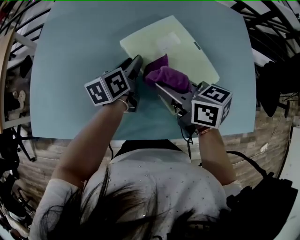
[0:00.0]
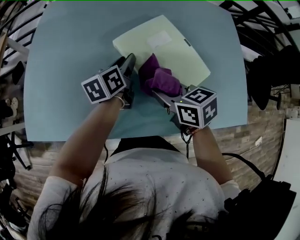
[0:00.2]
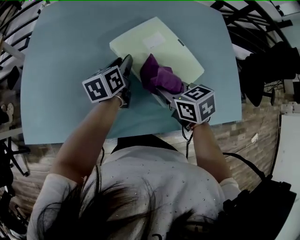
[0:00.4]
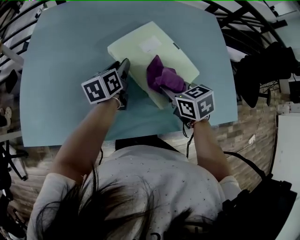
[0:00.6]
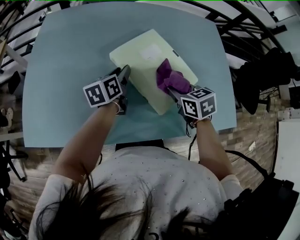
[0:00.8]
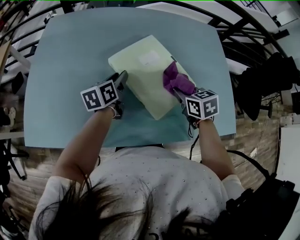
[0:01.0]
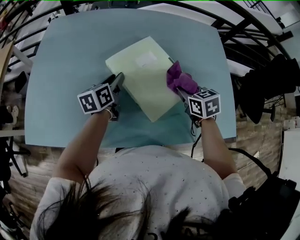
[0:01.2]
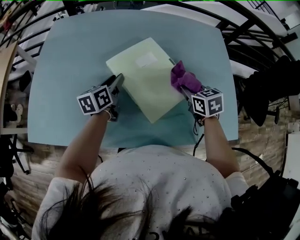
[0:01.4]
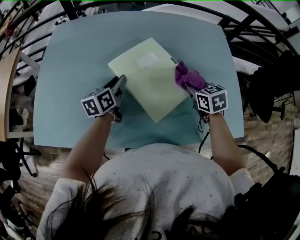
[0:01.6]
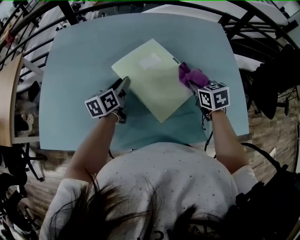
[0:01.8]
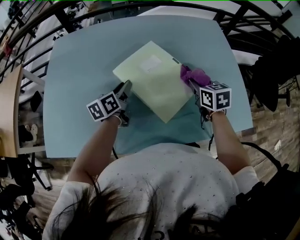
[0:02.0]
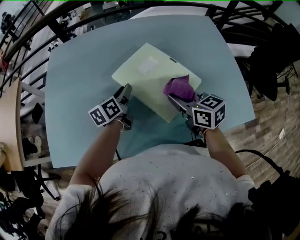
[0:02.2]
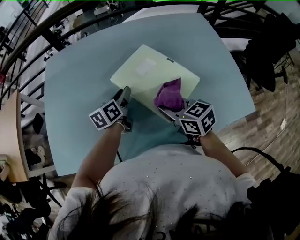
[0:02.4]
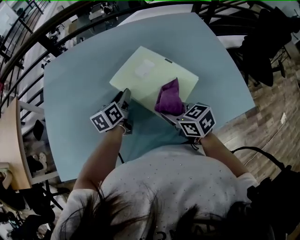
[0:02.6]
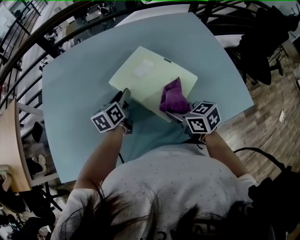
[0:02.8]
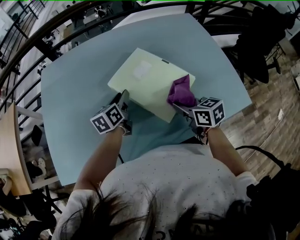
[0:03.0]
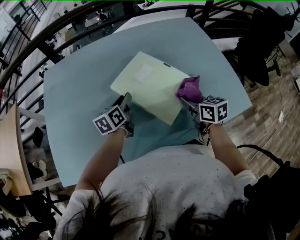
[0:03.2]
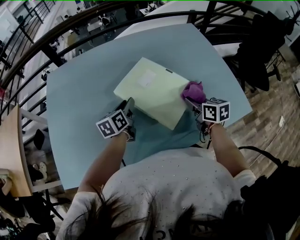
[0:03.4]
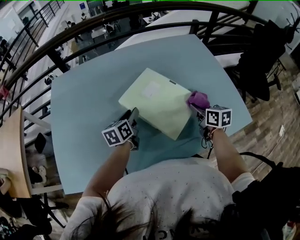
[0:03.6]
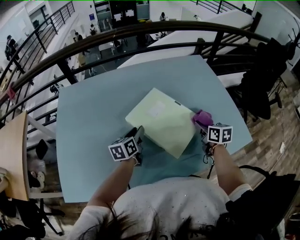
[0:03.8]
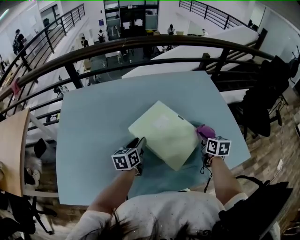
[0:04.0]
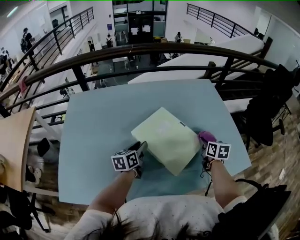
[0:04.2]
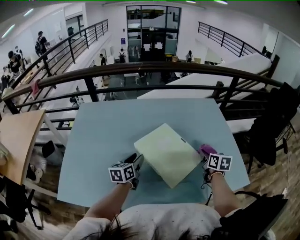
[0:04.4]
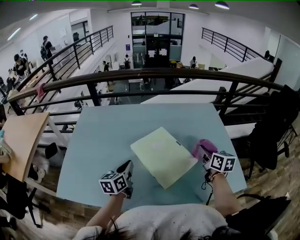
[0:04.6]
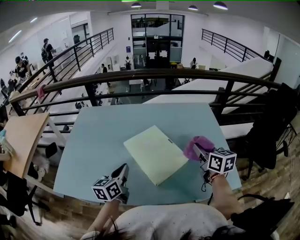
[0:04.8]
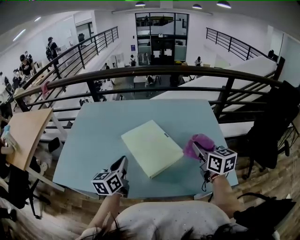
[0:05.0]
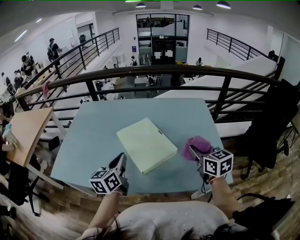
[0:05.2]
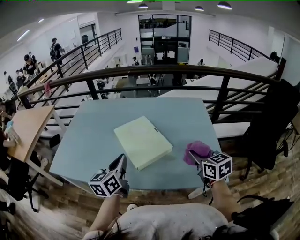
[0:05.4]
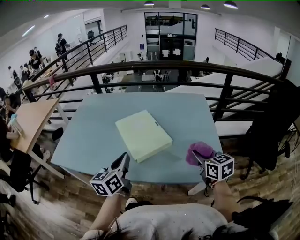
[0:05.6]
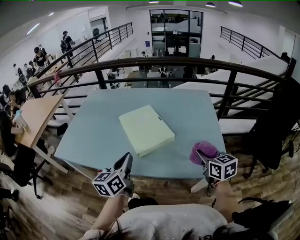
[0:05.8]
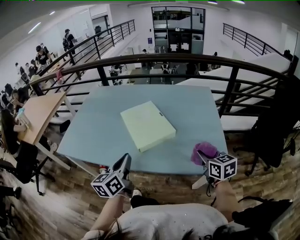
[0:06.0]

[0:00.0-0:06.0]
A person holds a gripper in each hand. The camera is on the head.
0:00.0 to 0:01.6: The right gripper is displaced to the right by roughly 20 cm, and turns by some 40 degrees.
0:01.6 to 0:03.0: The right gripper goes approximately 15 cm backward and to the left, and swivels approximately 20 degrees.
0:03.0 to 0:04.4: The right gripper is displaced to the right and forward by approximately 15 cm, and turns by roughly 20 degrees.
0:04.4 to 0:06.0: The two grippers go some 35 cm backward, upward and to the right. The left gripper rotates some 30 degrees, and closes. The right gripper rotates roughly 30 degrees.

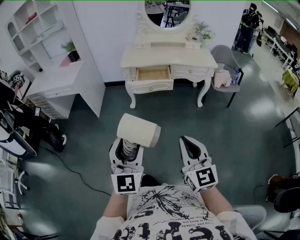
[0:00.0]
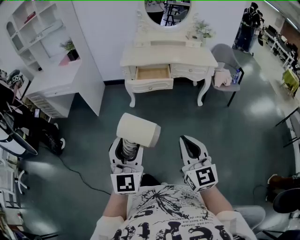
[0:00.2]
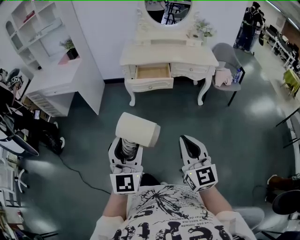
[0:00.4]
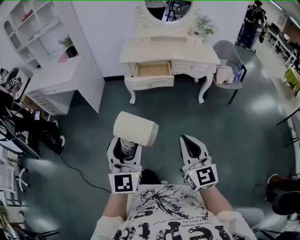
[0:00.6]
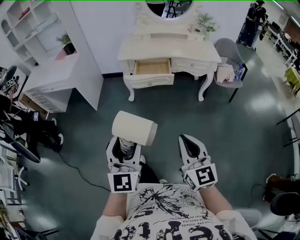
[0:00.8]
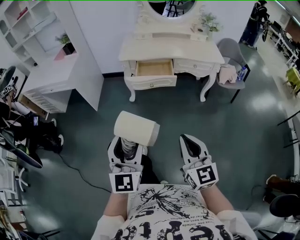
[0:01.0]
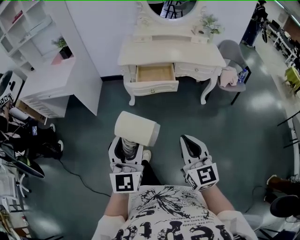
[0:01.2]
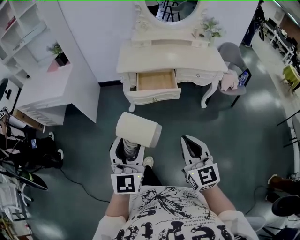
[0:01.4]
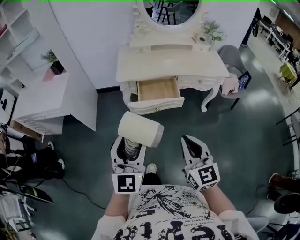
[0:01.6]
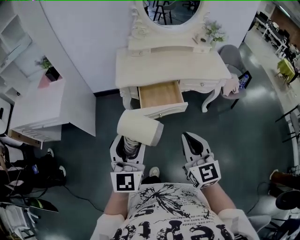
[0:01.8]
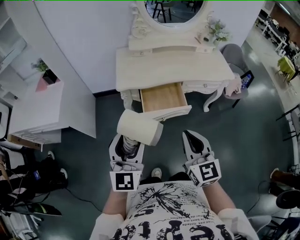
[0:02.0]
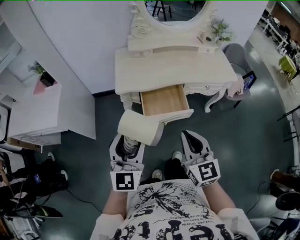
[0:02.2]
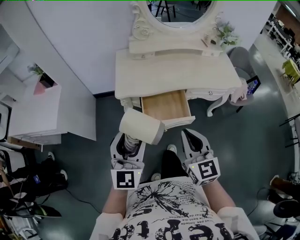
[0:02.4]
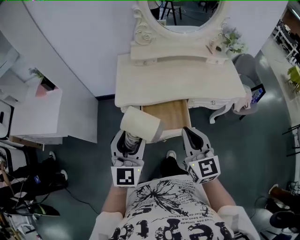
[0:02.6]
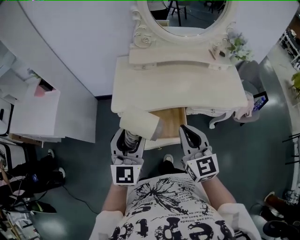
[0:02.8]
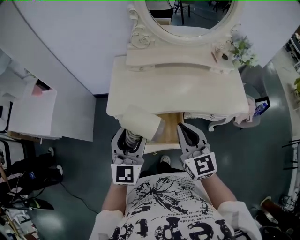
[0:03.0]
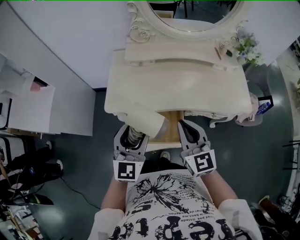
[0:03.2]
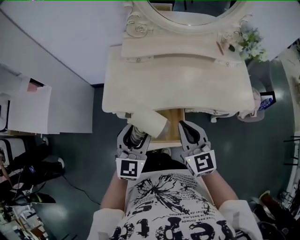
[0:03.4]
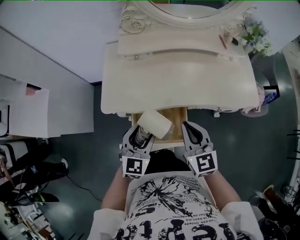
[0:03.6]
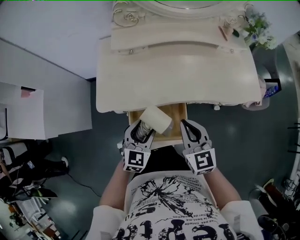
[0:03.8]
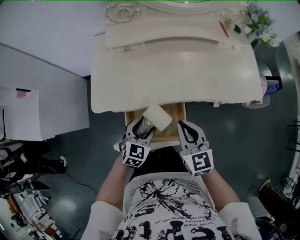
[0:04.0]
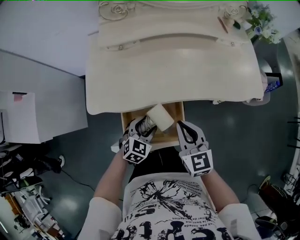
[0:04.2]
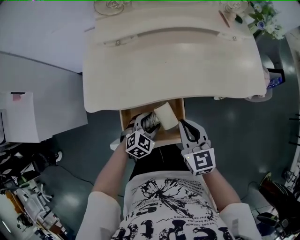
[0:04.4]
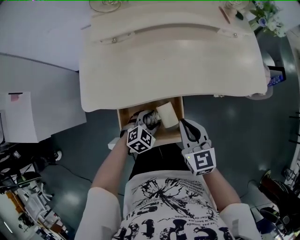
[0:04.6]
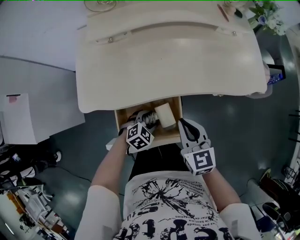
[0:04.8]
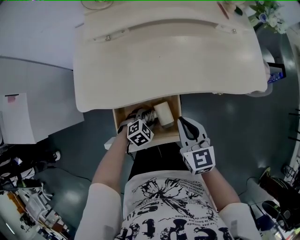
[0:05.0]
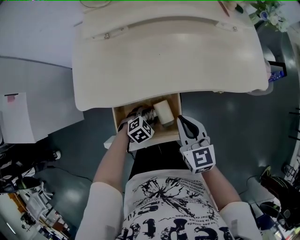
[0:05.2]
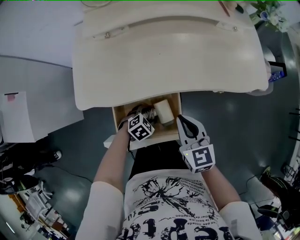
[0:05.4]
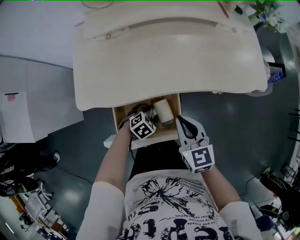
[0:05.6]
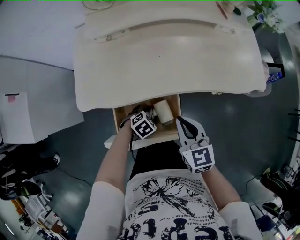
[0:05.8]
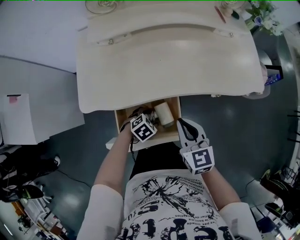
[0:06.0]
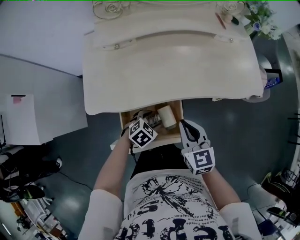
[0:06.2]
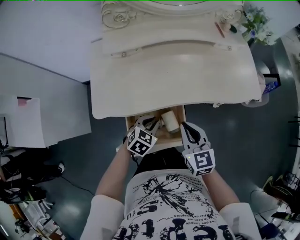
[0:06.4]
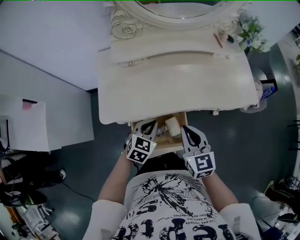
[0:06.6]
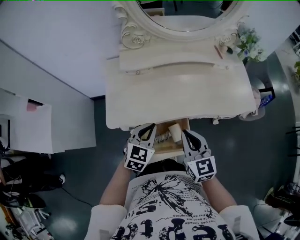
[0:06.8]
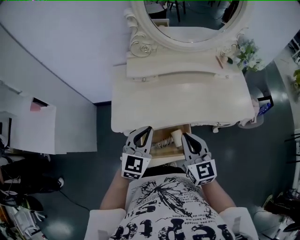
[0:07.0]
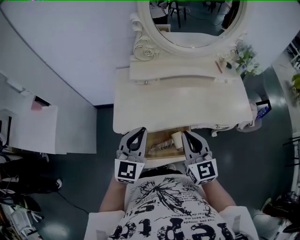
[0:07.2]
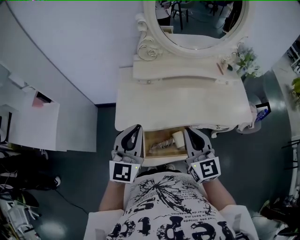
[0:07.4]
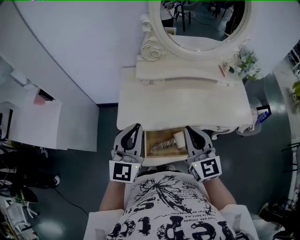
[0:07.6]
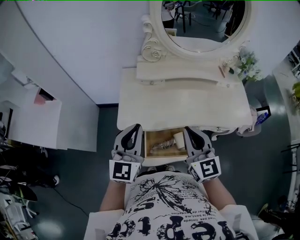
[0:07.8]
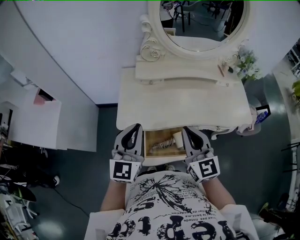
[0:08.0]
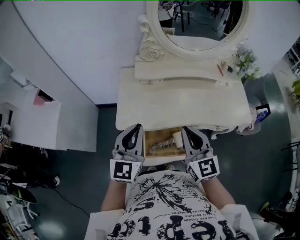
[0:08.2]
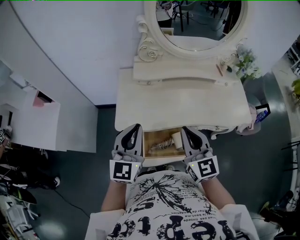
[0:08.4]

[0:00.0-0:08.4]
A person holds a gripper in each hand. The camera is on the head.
0:00.0 to 0:01.4: Both grippers move forward, approximately 20 cm.
0:01.4 to 0:02.8: The two grippers travel together, forward, about 40 cm.
0:02.8 to 0:04.2: The left gripper moves downward, about 30 cm, and tips its fingers downward by approximately 40 degrees; the right gripper shifts roughly 20 cm downward and forward.
0:04.2 to 0:05.6: The left gripper travels downward by roughly 5 cm, and turns by approximately 30 degrees.
0:05.6 to 0:07.0: The left gripper is displaced upward by approximately 30 cm, points its fingers approximately 50 degrees further upward, and closes its fingers; the right gripper moves upward, approximately 10 cm.
0:07.0 to 0:08.4: The right gripper goes roughly 5 cm upward; the left gripper moves upward and to the left, about 10 cm, and turns by about 20 degrees.

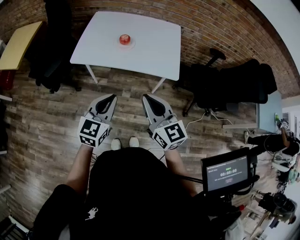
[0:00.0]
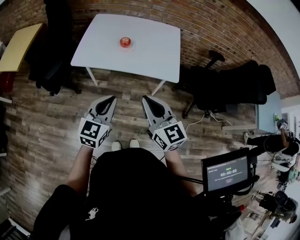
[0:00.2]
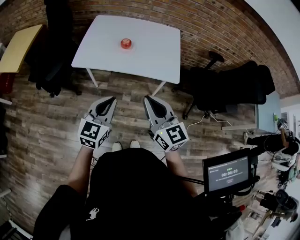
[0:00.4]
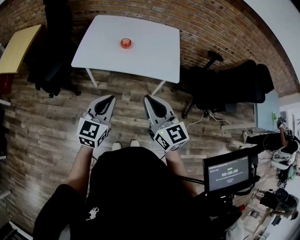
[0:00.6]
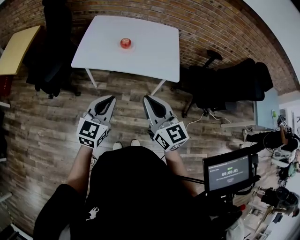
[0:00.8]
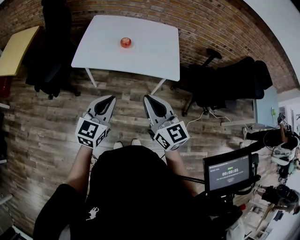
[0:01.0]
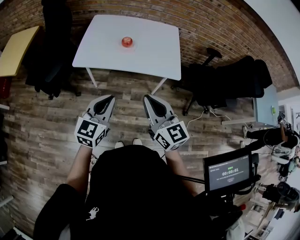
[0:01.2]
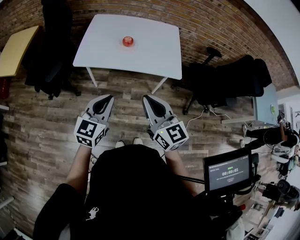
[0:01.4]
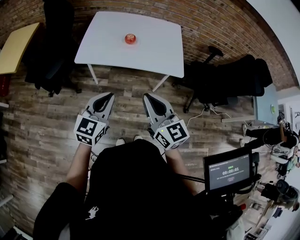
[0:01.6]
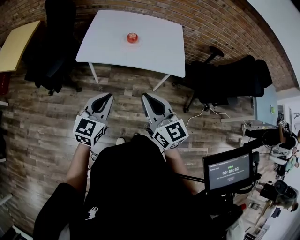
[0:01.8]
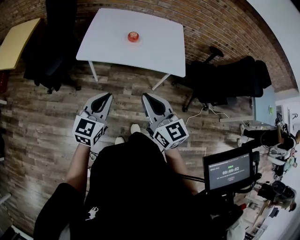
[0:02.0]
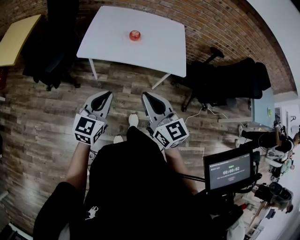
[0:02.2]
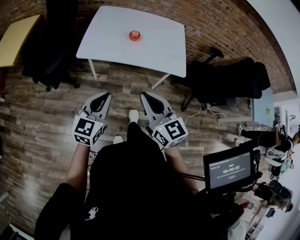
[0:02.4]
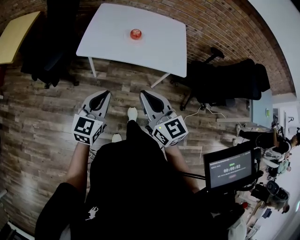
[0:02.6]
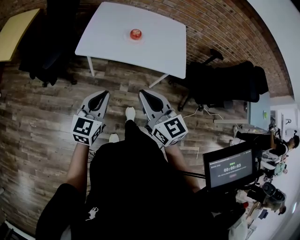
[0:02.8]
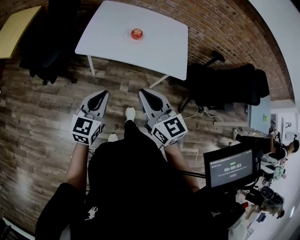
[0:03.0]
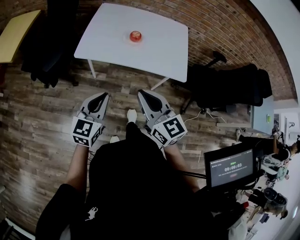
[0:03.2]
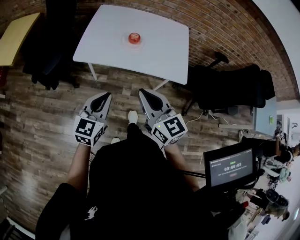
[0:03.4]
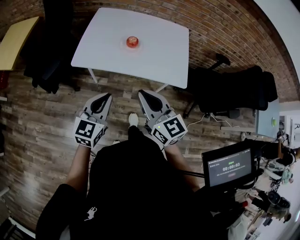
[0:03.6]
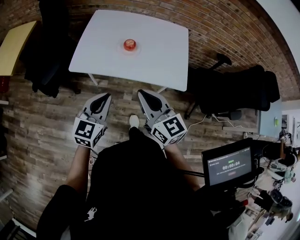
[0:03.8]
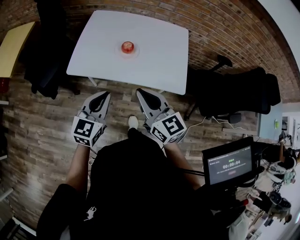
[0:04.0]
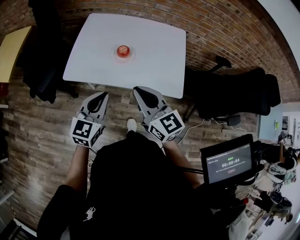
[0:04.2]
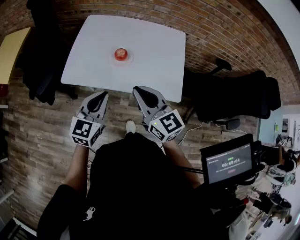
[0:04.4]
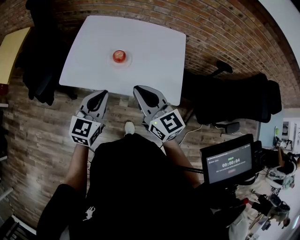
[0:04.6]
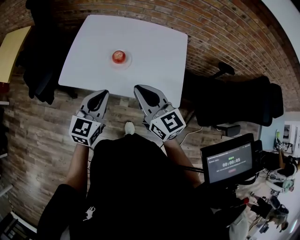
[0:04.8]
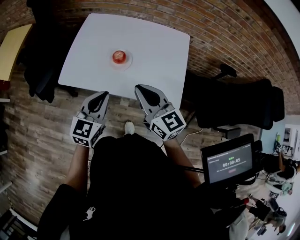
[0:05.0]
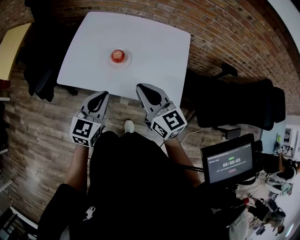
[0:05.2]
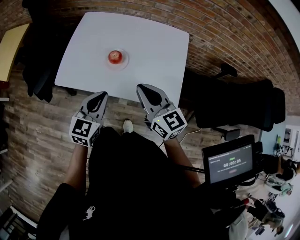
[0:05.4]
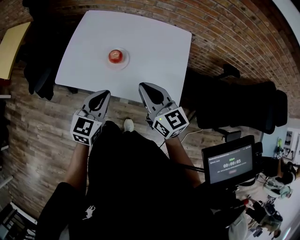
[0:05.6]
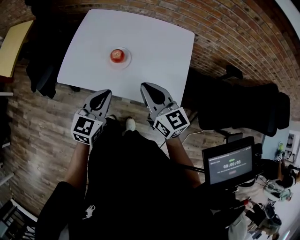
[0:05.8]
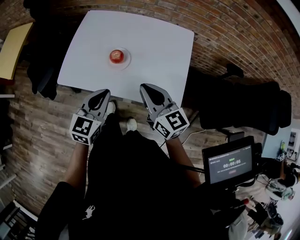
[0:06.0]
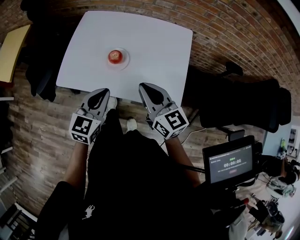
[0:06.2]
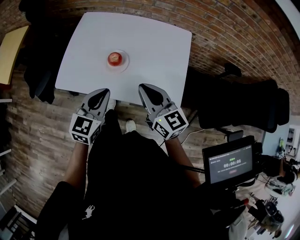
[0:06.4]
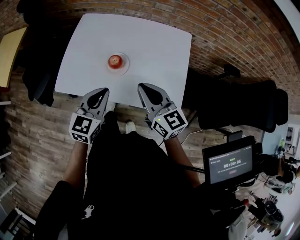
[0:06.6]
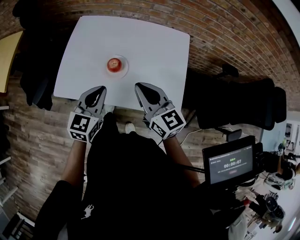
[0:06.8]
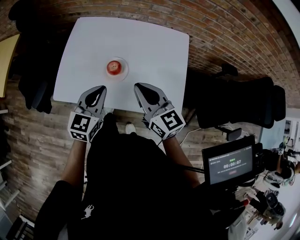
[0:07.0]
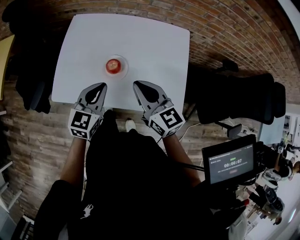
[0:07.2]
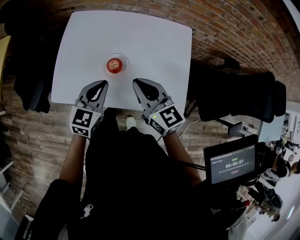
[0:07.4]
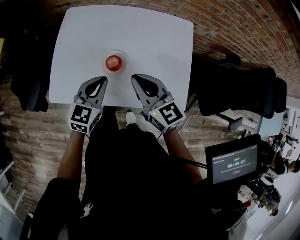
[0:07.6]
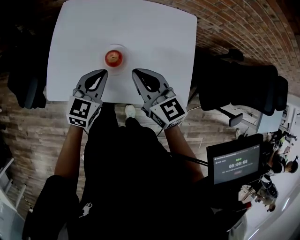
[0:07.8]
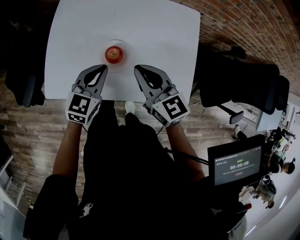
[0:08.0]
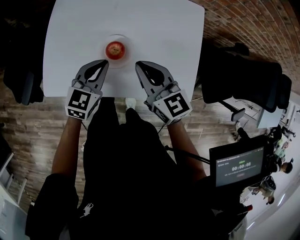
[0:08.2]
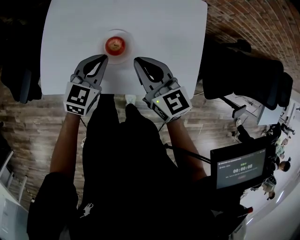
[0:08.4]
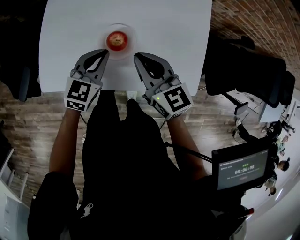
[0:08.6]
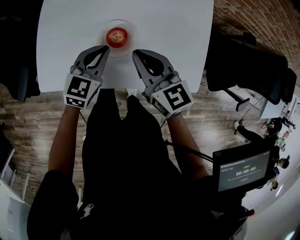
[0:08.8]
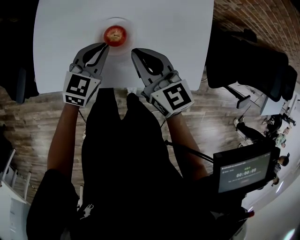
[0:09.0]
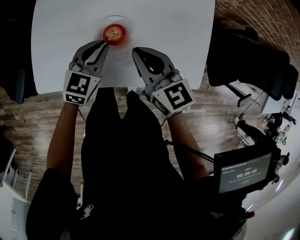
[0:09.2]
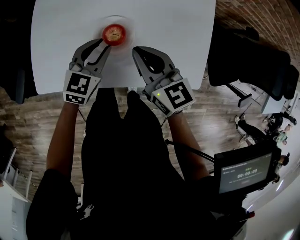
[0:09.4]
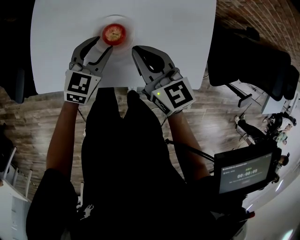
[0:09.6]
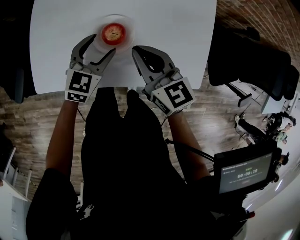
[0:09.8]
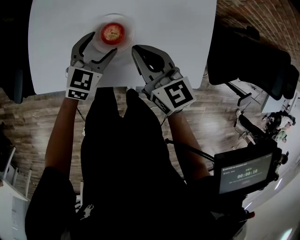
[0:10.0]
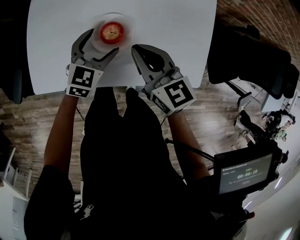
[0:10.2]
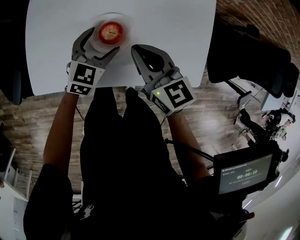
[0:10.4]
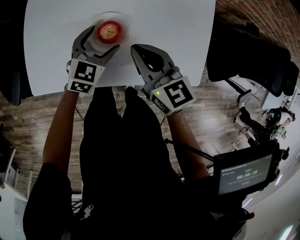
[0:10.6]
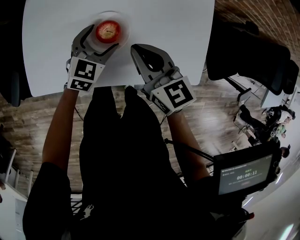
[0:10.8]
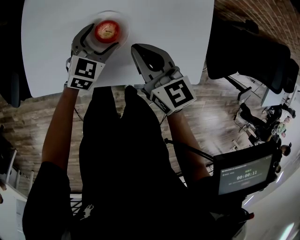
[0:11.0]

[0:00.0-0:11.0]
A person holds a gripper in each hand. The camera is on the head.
0:00.0 to 0:01.6: Both grippers travel together to the left, some 10 cm.
0:01.6 to 0:03.2: The right gripper is displaced forward by approximately 5 cm; the left gripper shifts by about 5 cm.
0:03.2 to 0:04.8: The grippers both shift forward and to the right by some 25 cm.
0:04.8 to 0:06.2: The right gripper goes approximately 5 cm to the right; the left gripper shifts by approximately 5 cm.
0:06.2 to 0:07.8: The right gripper travels forward and to the left by approximately 15 cm. Meanwhile the left gripper moves forward and downward, about 15 cm.
0:07.8 to 0:09.4: The two grippers go roughly 10 cm downward.
0:09.4 to 0:11.0: The left gripper shifts by some 5 cm, and opens its fingers.
